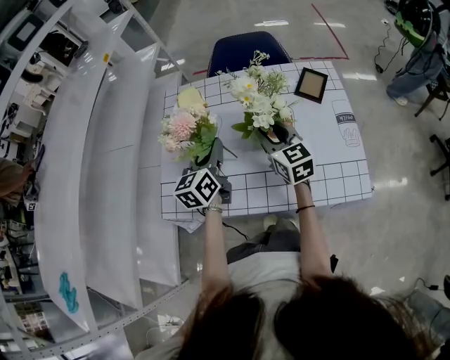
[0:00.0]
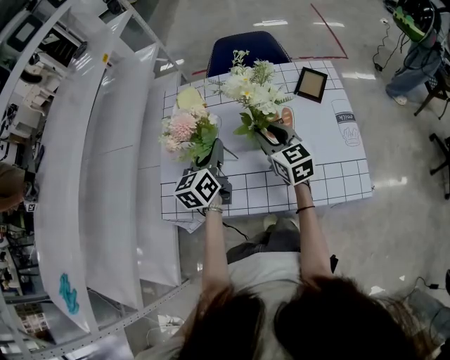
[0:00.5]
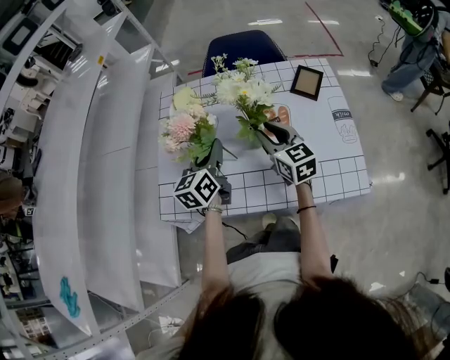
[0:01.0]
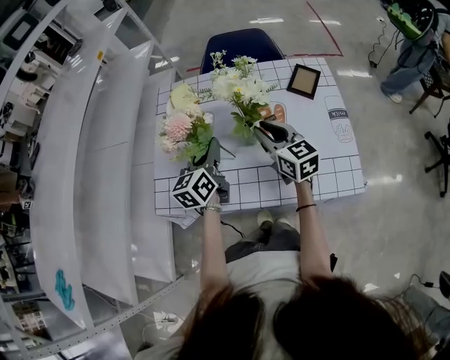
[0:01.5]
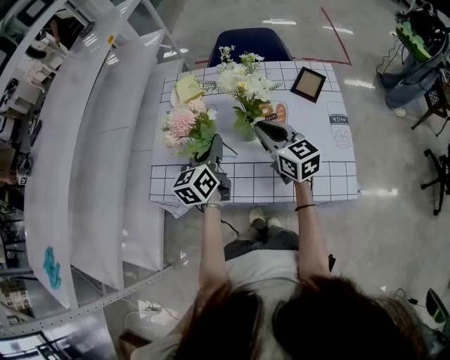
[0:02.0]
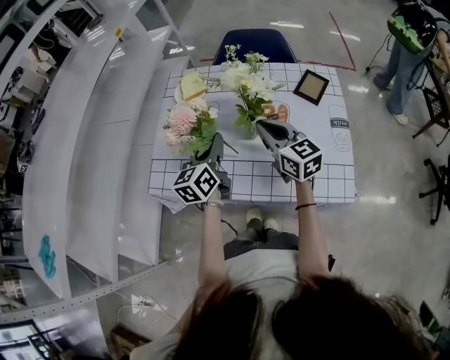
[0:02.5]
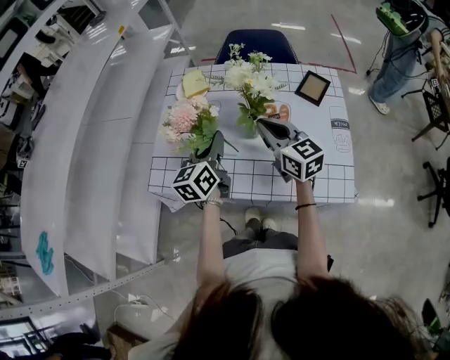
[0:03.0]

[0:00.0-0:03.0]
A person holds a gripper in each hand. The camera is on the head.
0:00.0 to 0:01.5: The grippers make only small movements.
0:01.5 to 0:03.0: The grippers move only a little.

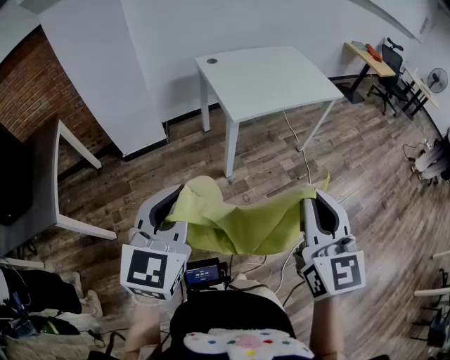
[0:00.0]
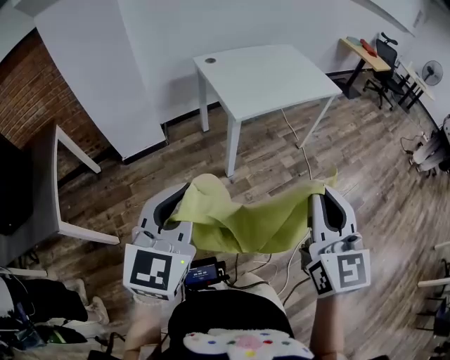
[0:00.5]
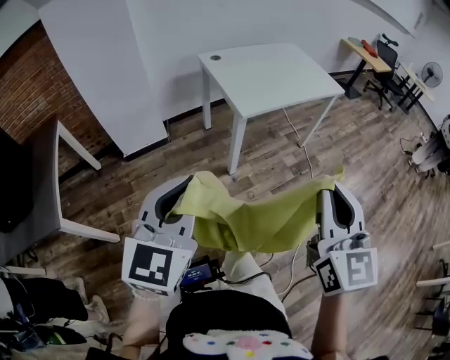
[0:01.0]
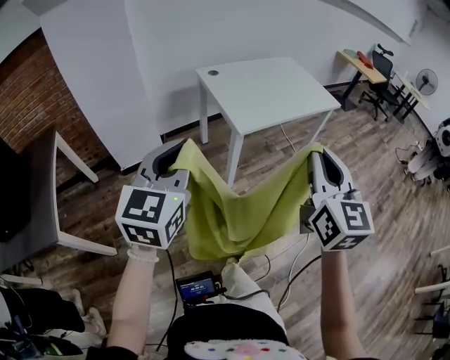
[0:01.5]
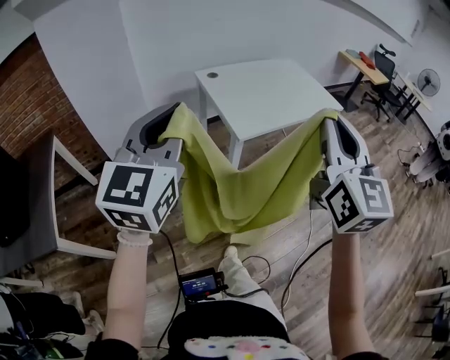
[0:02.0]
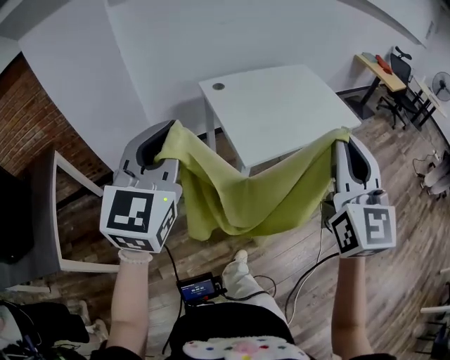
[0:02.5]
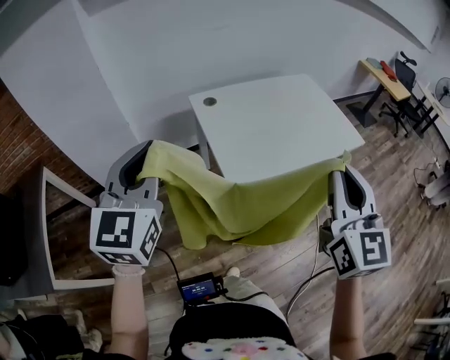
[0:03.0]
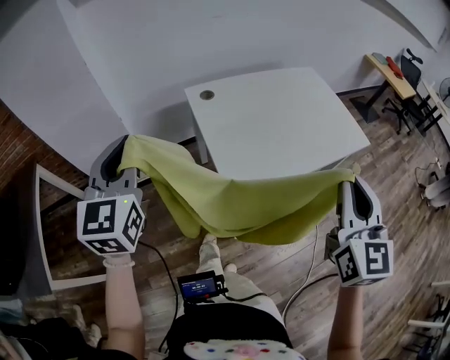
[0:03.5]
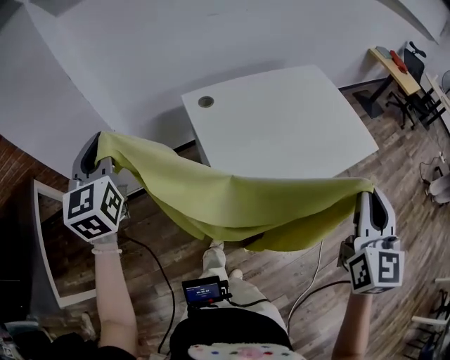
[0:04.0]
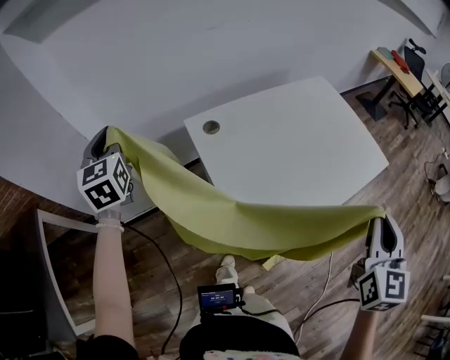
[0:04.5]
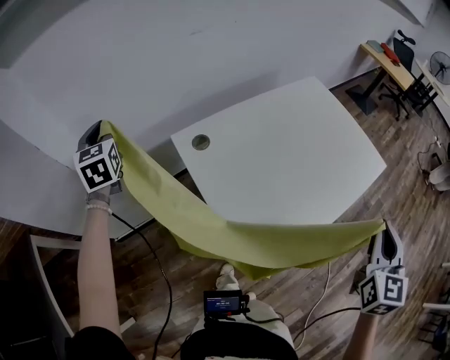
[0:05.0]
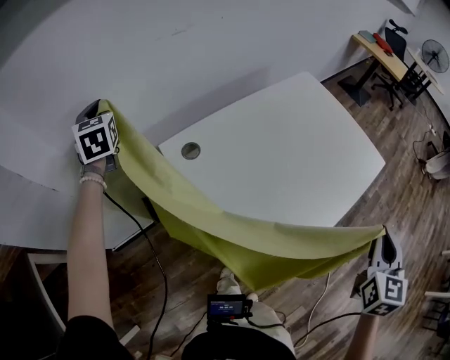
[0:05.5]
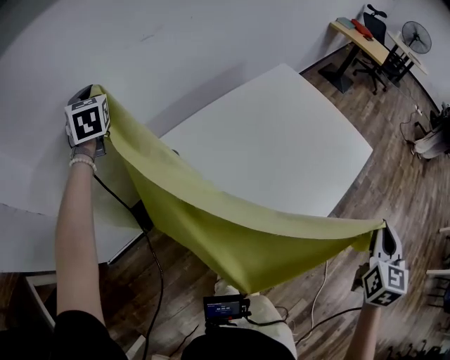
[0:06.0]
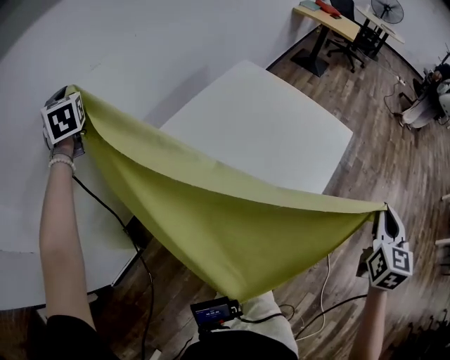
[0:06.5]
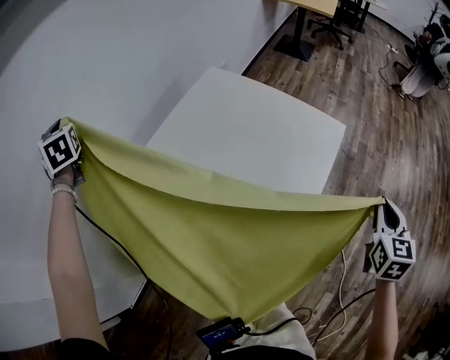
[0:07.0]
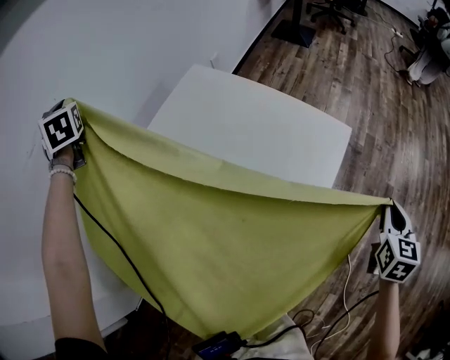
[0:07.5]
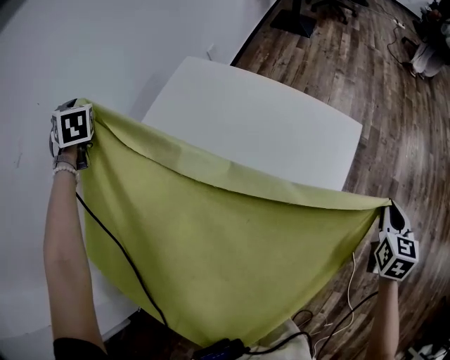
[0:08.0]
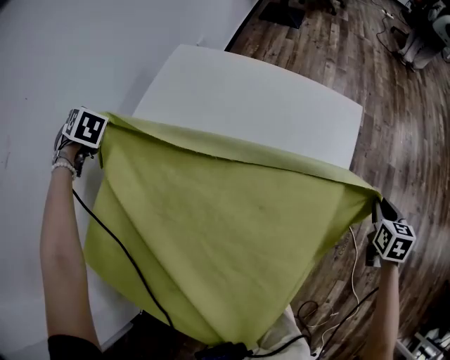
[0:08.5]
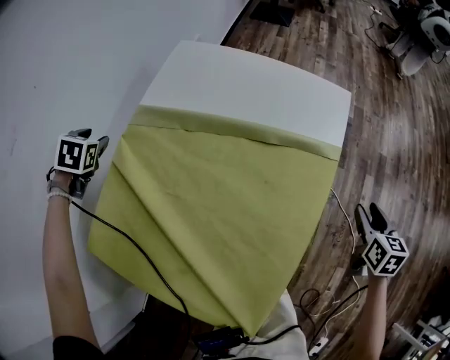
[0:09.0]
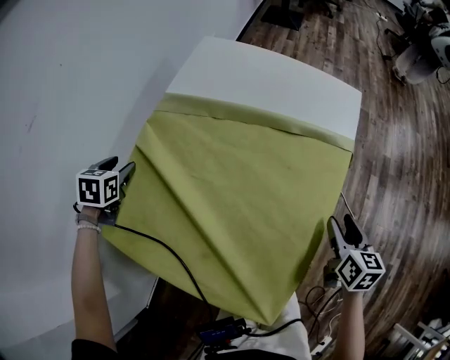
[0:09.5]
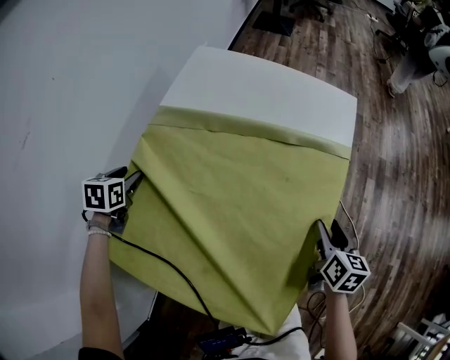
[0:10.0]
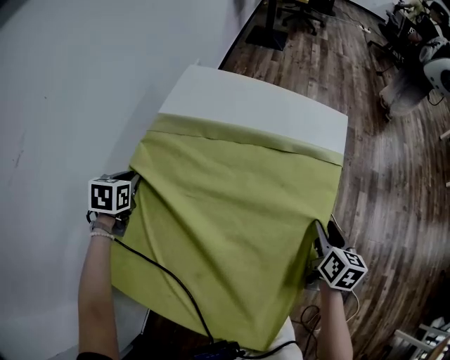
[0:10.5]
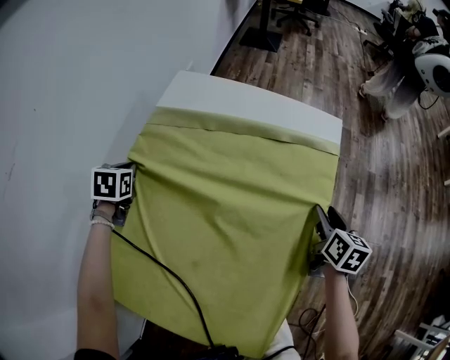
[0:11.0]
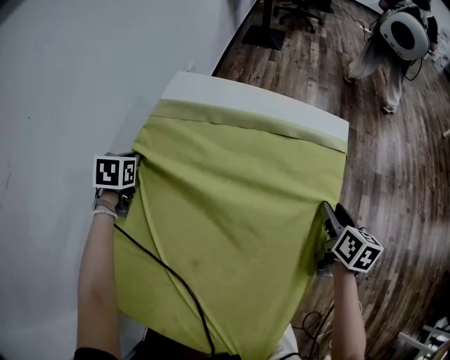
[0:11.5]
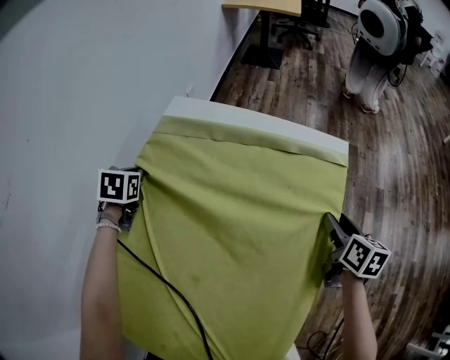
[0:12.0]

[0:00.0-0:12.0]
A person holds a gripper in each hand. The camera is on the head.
0:00.0 to 0:02.0: Both grippers travel together forward and upward, some 20 cm.
0:02.0 to 0:04.0: The left gripper moves forward, about 35 cm, and changes its angle by roughly 30 degrees, while the right gripper travels forward, to the right and downward by some 35 cm.
0:04.0 to 0:06.0: The right gripper is displaced to the right, downward and forward by some 15 cm, and turns by about 40 degrees. Meanwhile the left gripper shifts about 50 cm forward.
0:06.0 to 0:08.0: The left gripper is displaced to the right and forward by about 40 cm, and rotates some 30 degrees. The right gripper moves to the right, downward and forward, some 35 cm, and rotates some 20 degrees.
0:08.0 to 0:10.0: The left gripper travels downward and backward by roughly 30 cm, points its fingers about 30 degrees further downward, and opens up; the right gripper heads to the left and backward, covering approximately 30 cm, swivels roughly 30 degrees, and opens up.
0:10.0 to 0:12.0: Both grippers travel together forward and to the right, approximately 20 cm. The left gripper closes its fingers.

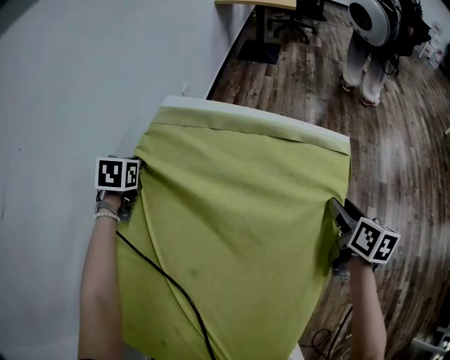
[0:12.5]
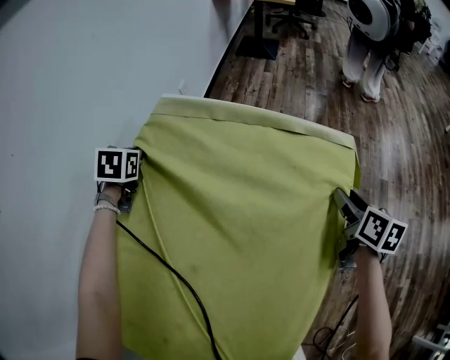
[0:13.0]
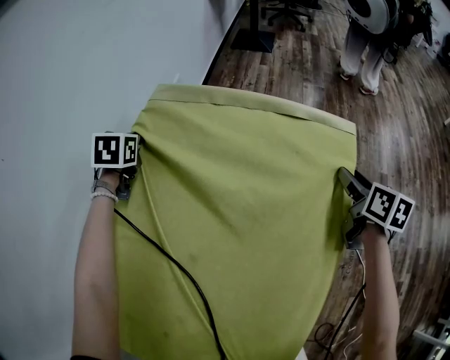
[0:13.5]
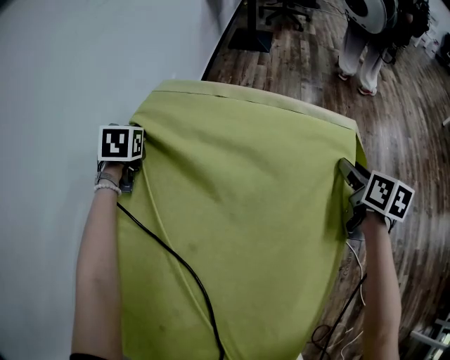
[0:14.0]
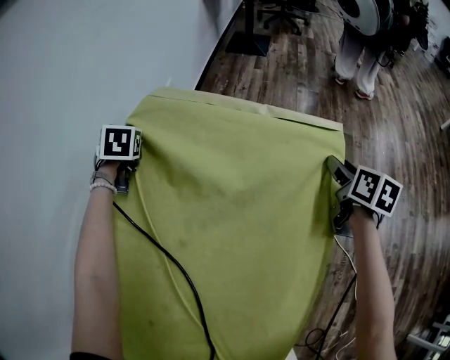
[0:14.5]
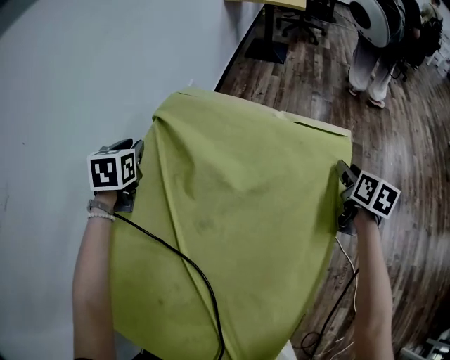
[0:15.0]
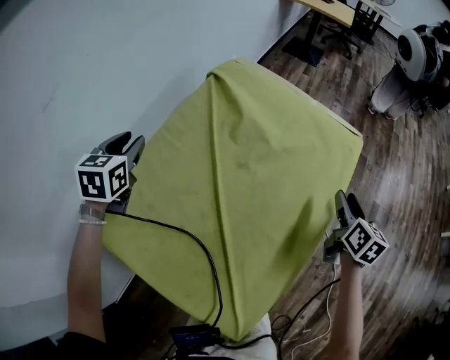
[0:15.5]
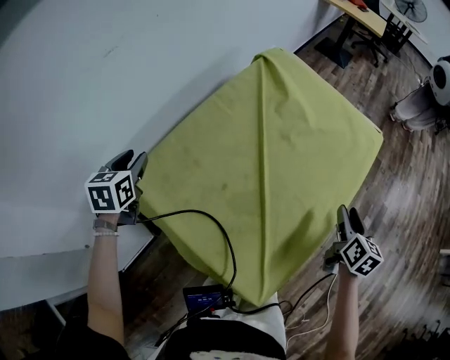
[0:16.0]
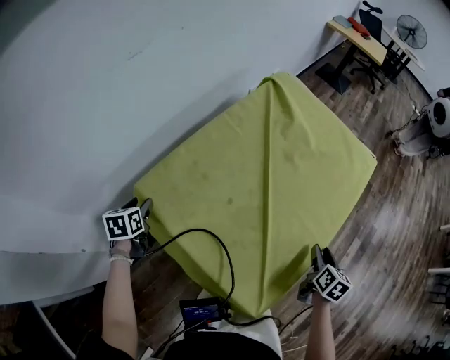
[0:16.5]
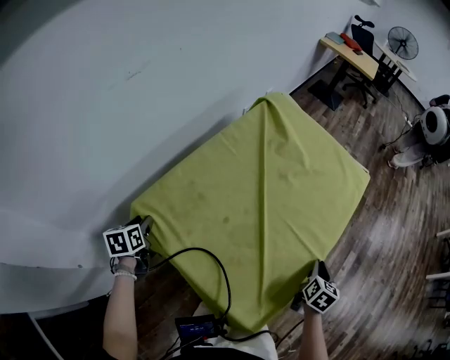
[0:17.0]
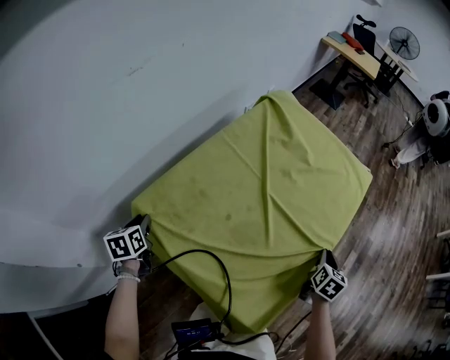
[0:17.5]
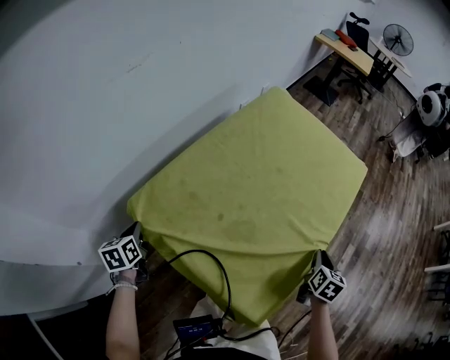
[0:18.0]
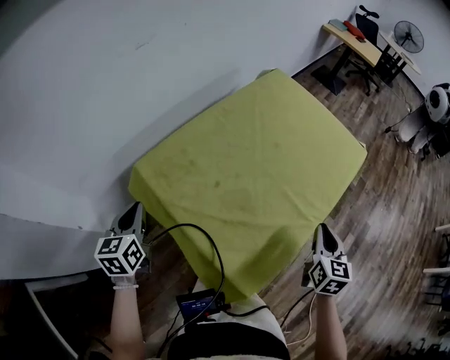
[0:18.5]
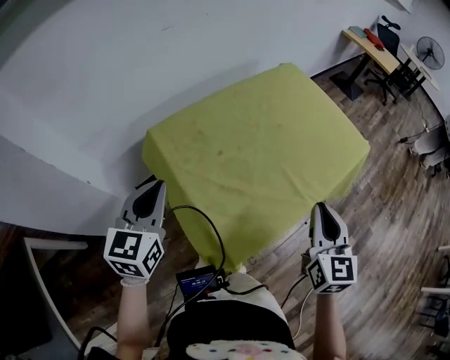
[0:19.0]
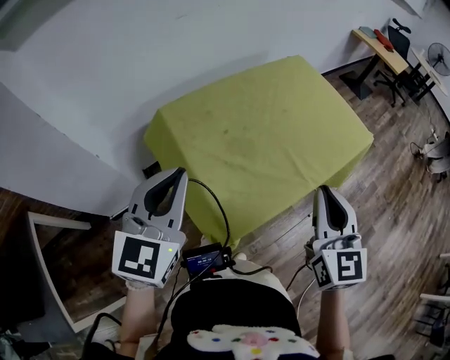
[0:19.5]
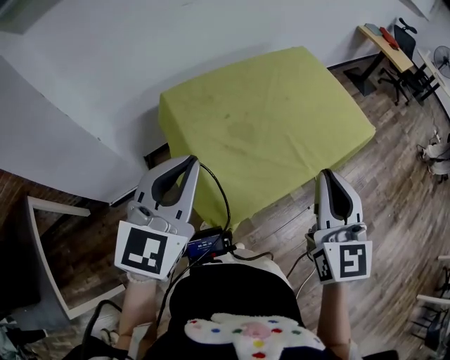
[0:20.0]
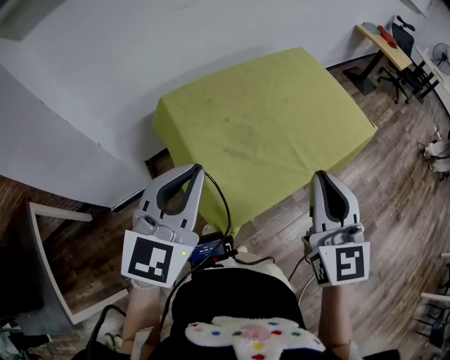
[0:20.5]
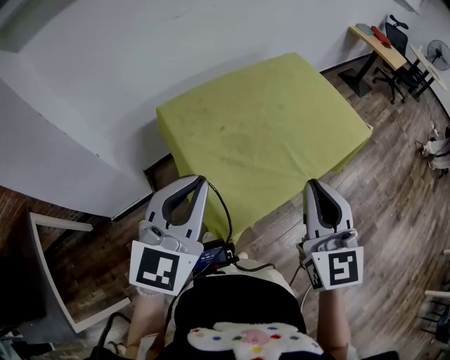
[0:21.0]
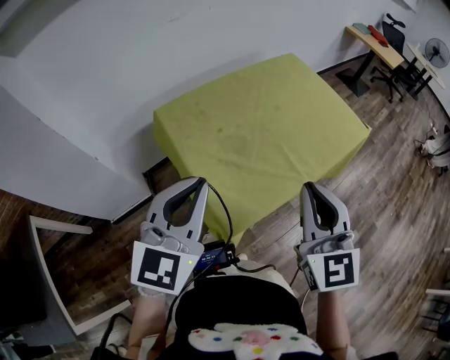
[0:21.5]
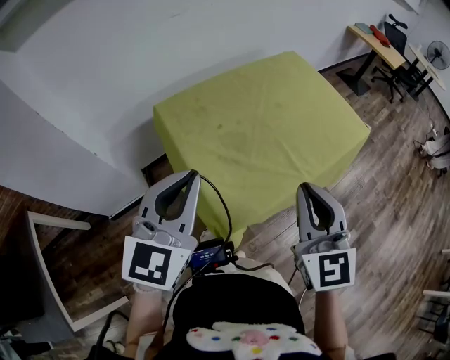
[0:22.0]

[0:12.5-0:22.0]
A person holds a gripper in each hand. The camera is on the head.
0:12.5 to 0:14.5: The grippers both shift forward and to the right by about 10 cm.
0:14.5 to 0:16.5: The left gripper shifts about 60 cm backward and to the left, twists roughly 50 degrees counterclockwise, seen from behind, and opens; the right gripper shifts about 40 cm backward and to the left.
0:16.5 to 0:18.0: The right gripper closes up, while the left gripper closes.
0:18.0 to 0:20.0: The right gripper moves upward, approximately 30 cm, and points its fingers roughly 40 degrees further upward, while the left gripper shifts approximately 50 cm upward, to the right and backward, and points its fingers some 30 degrees further upward.
0:20.0 to 0:22.0: The grippers move only a little.

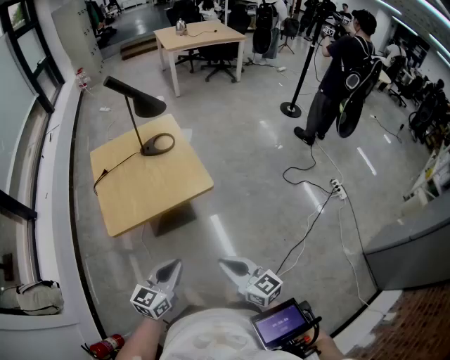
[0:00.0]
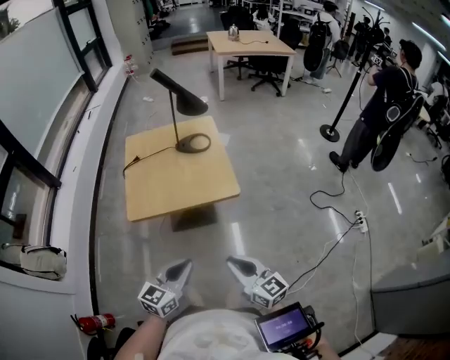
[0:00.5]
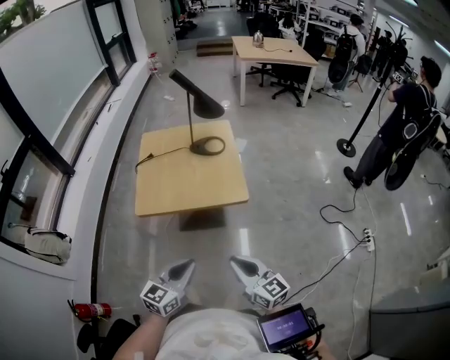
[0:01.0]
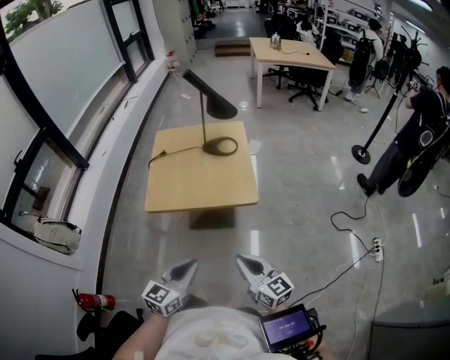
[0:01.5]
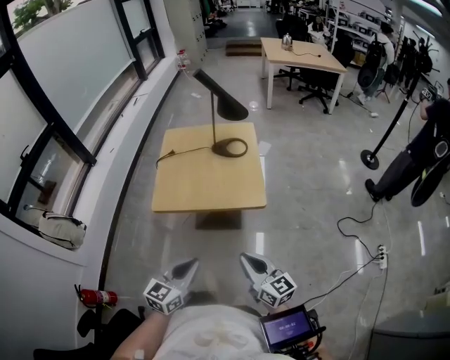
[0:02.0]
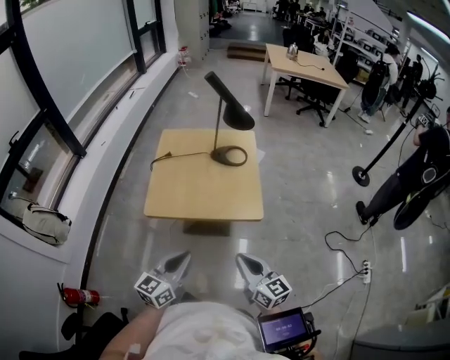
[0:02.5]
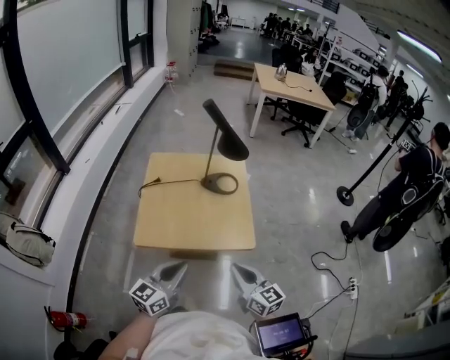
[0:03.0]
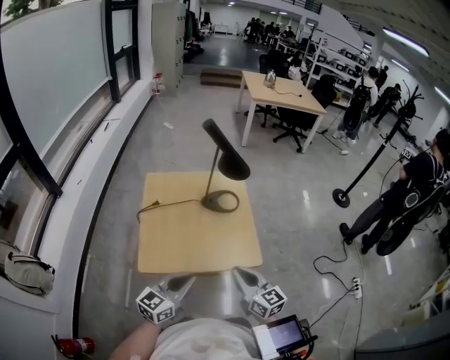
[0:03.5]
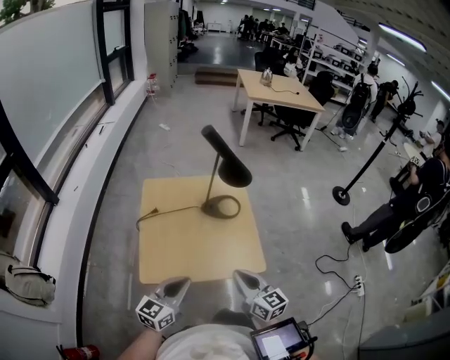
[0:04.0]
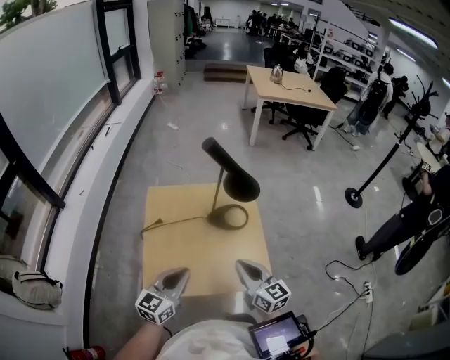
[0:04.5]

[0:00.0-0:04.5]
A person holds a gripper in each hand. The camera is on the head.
0:00.0 to 0:02.0: The right gripper is displaced forward by some 5 cm.
0:02.0 to 0:04.5: Both grippers move forward, about 35 cm.
